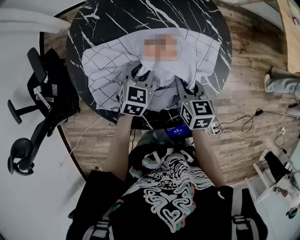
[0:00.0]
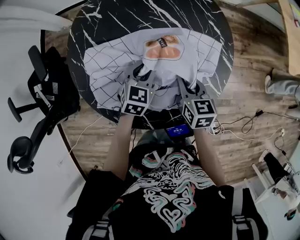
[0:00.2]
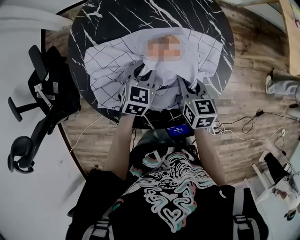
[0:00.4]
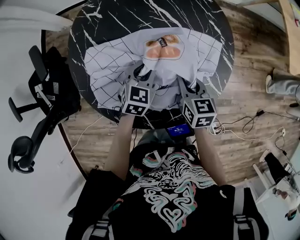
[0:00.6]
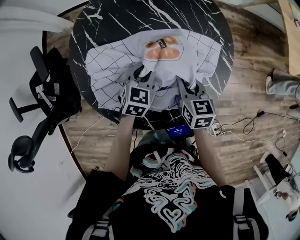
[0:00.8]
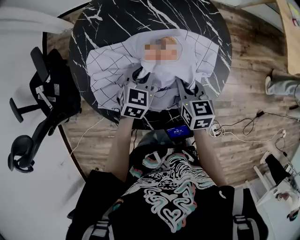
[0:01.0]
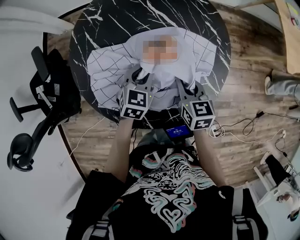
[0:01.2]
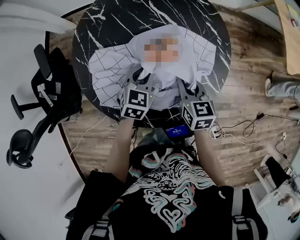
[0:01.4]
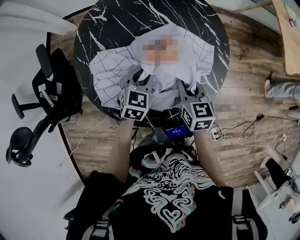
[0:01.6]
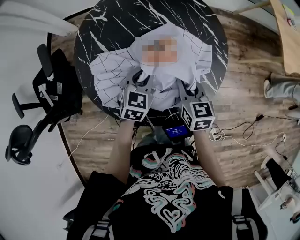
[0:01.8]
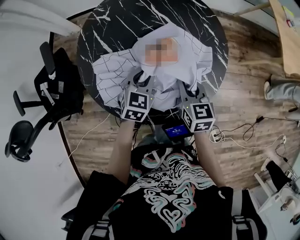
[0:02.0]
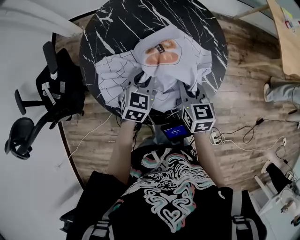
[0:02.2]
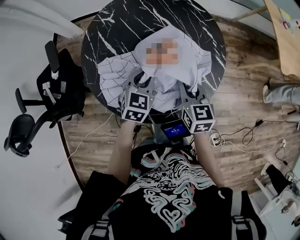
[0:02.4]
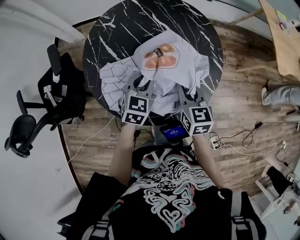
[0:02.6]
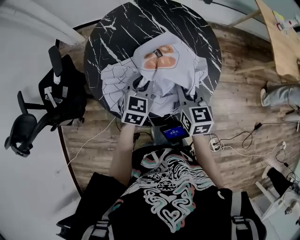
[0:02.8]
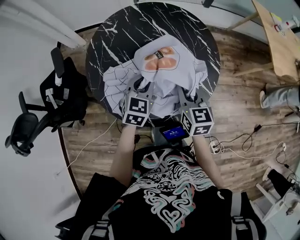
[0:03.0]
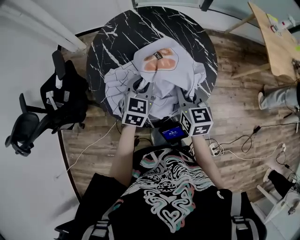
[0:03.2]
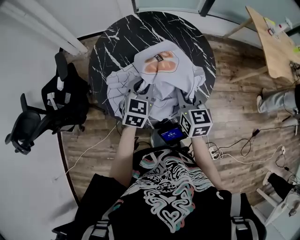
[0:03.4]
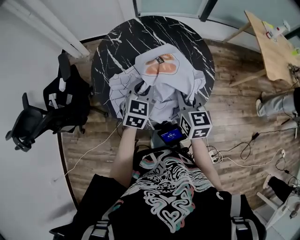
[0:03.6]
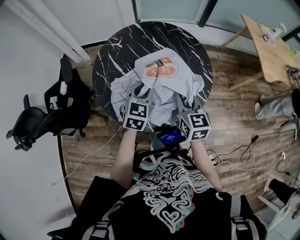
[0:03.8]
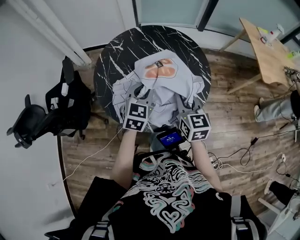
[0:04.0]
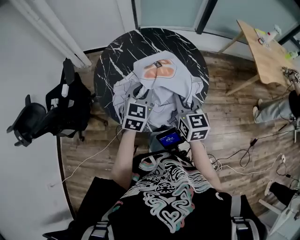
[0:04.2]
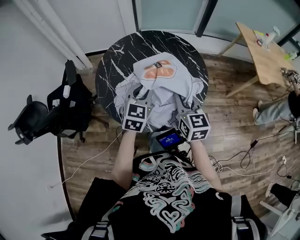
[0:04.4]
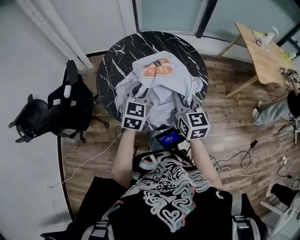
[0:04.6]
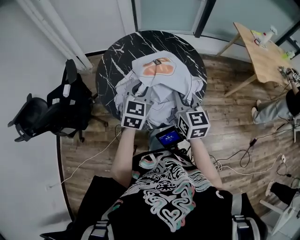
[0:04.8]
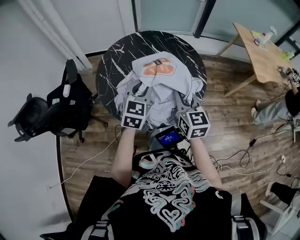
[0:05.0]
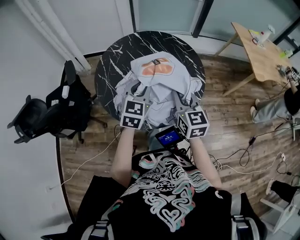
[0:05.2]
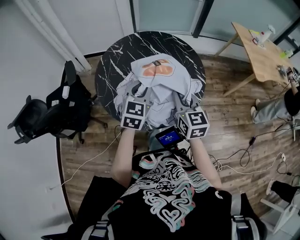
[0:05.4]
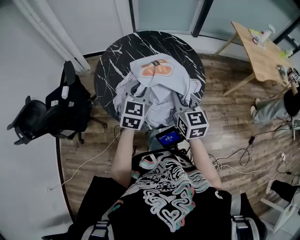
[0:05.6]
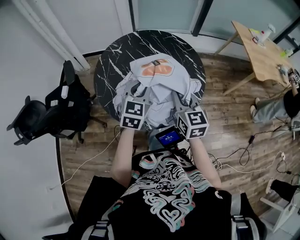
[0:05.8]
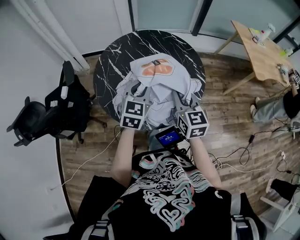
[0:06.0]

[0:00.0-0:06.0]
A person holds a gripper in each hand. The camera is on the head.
0:00.0 to 0:01.6: There are only small adjustments of the grippers.
0:01.6 to 0:03.0: Both grippers travel together upward, about 10 cm.
0:03.0 to 0:04.4: The grippers both shift upward and backward by some 10 cm.
0:04.4 to 0:06.0: The grippers stay close to where they were, moving slightly.

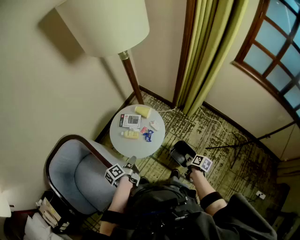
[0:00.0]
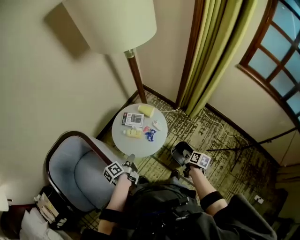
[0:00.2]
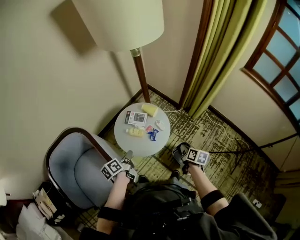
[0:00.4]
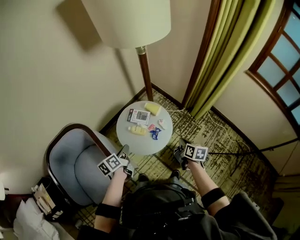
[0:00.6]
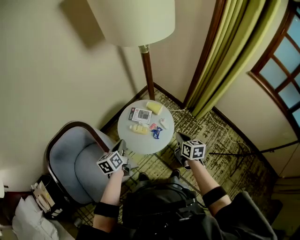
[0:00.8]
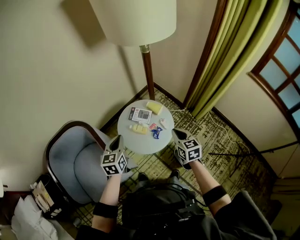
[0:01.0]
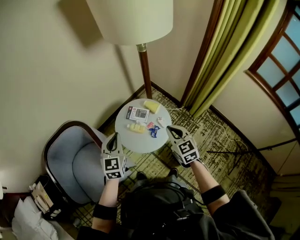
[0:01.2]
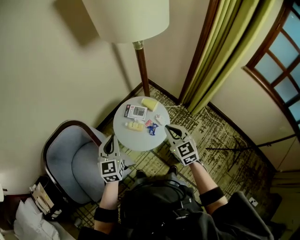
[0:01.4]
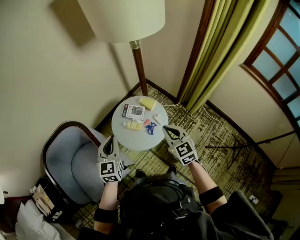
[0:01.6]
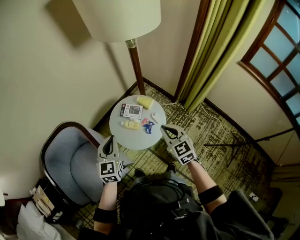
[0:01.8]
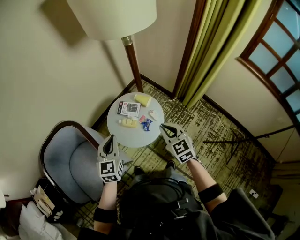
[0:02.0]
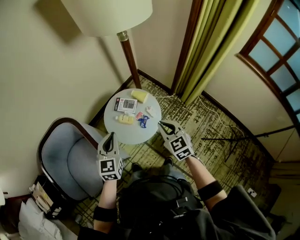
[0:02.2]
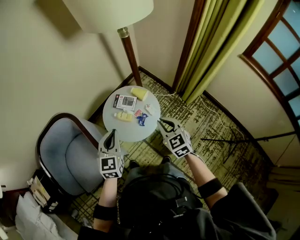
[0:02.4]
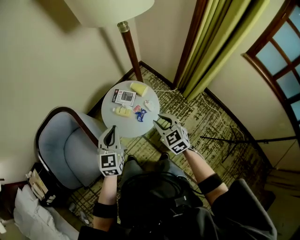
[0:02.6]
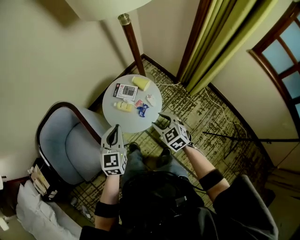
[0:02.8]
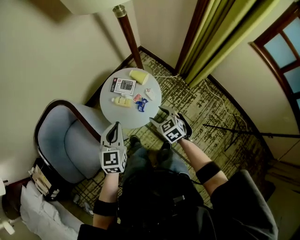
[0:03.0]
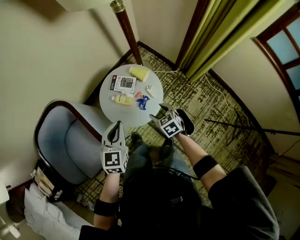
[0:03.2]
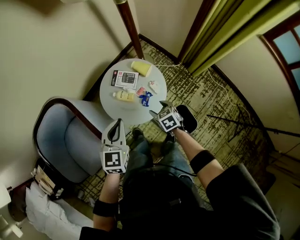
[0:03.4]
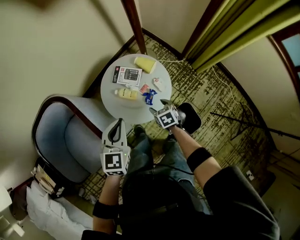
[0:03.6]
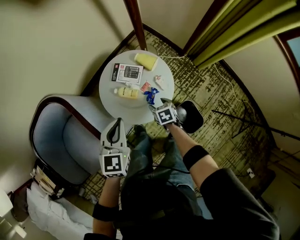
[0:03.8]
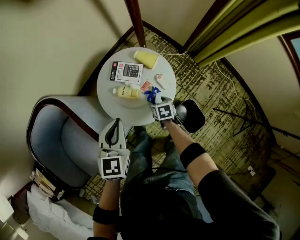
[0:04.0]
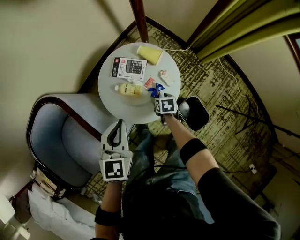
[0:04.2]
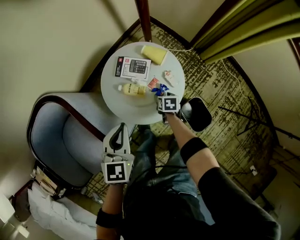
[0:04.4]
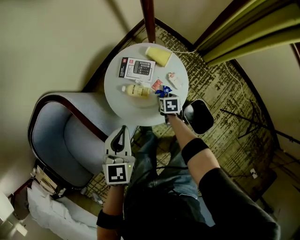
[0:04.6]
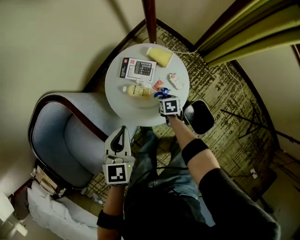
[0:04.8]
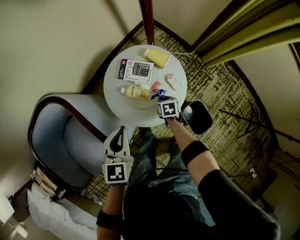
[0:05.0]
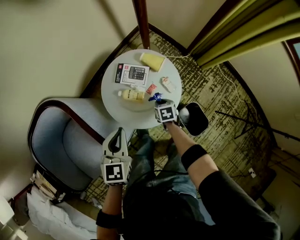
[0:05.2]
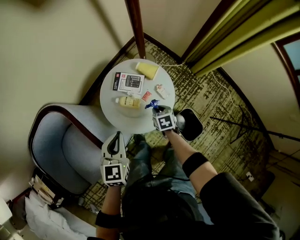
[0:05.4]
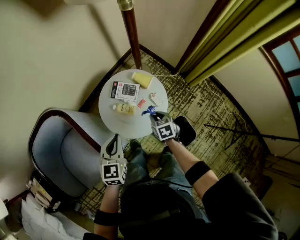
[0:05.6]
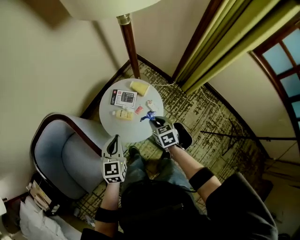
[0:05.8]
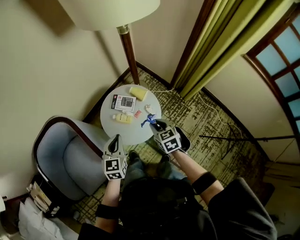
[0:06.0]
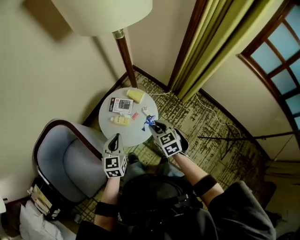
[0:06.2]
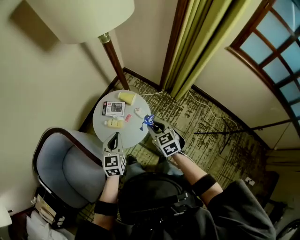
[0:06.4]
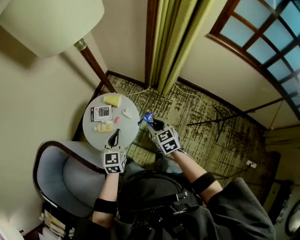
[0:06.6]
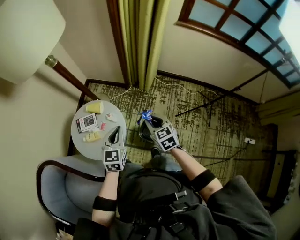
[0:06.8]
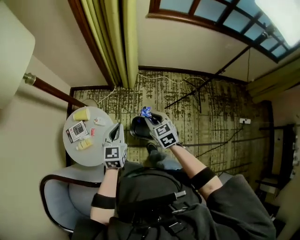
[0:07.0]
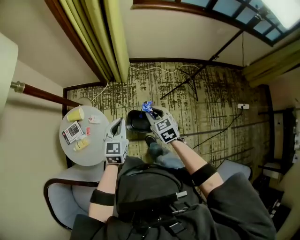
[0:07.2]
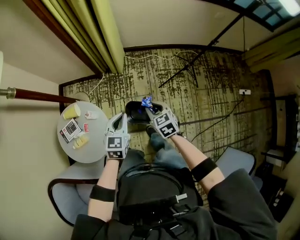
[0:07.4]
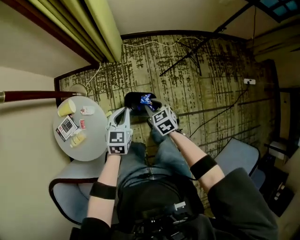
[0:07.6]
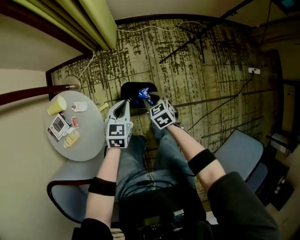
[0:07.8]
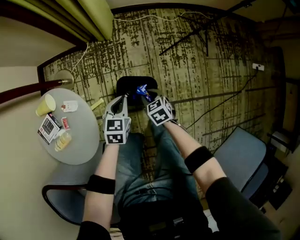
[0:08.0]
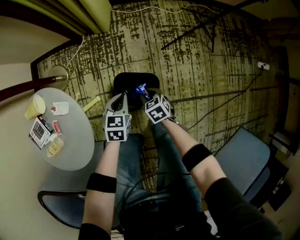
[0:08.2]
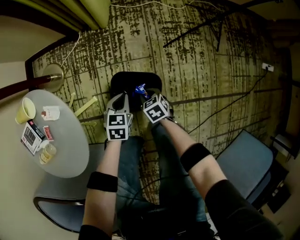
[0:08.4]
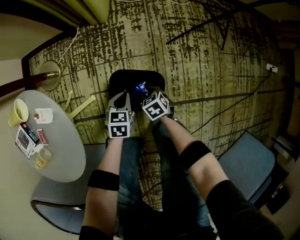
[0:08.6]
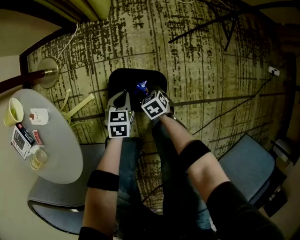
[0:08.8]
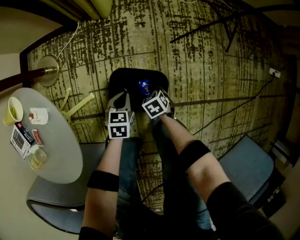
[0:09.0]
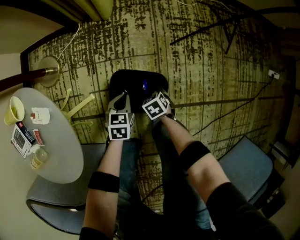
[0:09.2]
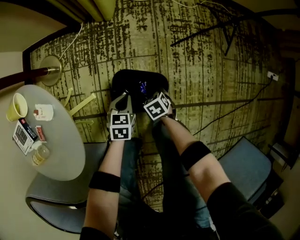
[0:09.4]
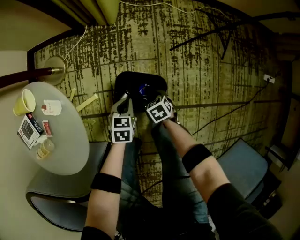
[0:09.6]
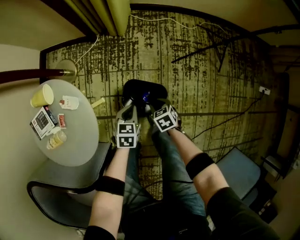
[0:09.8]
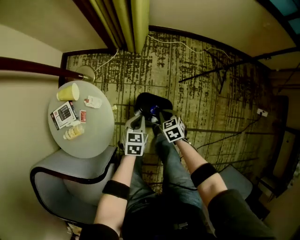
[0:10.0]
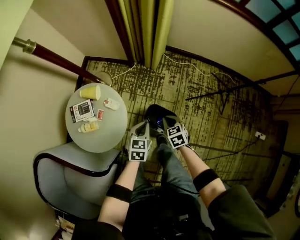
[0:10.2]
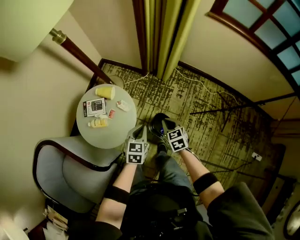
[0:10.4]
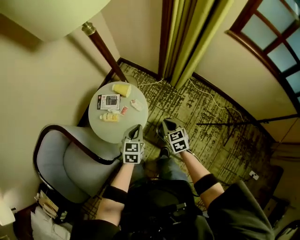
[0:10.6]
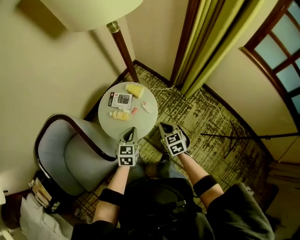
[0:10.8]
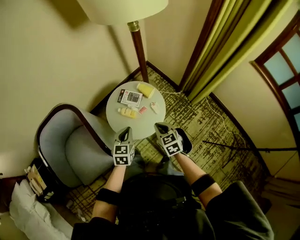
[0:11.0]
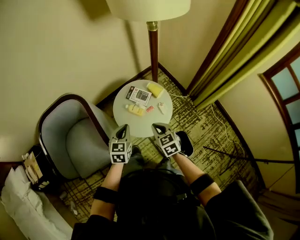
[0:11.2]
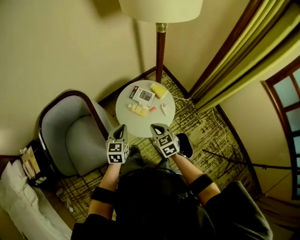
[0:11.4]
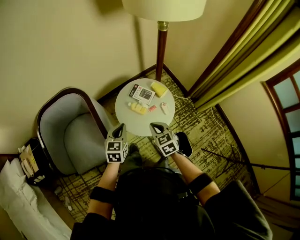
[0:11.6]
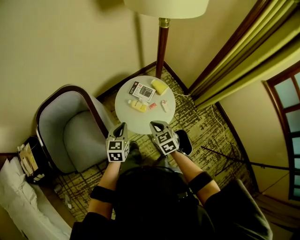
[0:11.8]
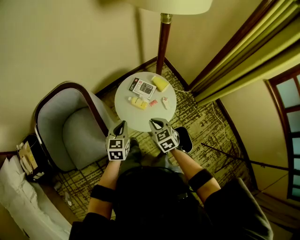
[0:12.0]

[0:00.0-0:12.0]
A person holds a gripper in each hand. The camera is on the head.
0:00.0 to 0:01.6: The right gripper is displaced upward, to the left and forward by roughly 35 cm, and twists some 80 degrees counterclockwise, seen from behind, while the left gripper shifts about 20 cm upward and to the left, and rotates around the line of its fingers by roughly 80 degrees, clockwise from behind.
0:01.6 to 0:03.0: The left gripper moves to the right and downward, about 15 cm. Meanwhile the right gripper shifts approximately 15 cm downward, swivels approximately 20 degrees, and opens its fingers.
0:03.0 to 0:04.4: The right gripper shifts roughly 30 cm downward, and rolls clockwise, seen from behind, by approximately 40 degrees. Meanwhile the left gripper shifts about 15 cm downward, forward and to the left.
0:04.4 to 0:06.0: The right gripper heads upward, covering approximately 35 cm, changes its angle by some 40 degrees, and closes; the left gripper shifts approximately 10 cm upward.
0:06.0 to 0:07.6: The right gripper shifts by roughly 35 cm, and turns by roughly 40 degrees. Meanwhile the left gripper shifts by approximately 40 cm, and turns by roughly 60 degrees.
0:07.6 to 0:09.0: The grippers both shift downward by roughly 50 cm. The right gripper changes its angle by approximately 20 degrees.
0:09.0 to 0:10.4: The grippers both shift upward by about 50 cm. The left gripper rotates some 30 degrees. The right gripper swivels approximately 30 degrees, and closes up.
0:10.4 to 0:12.0: The right gripper moves roughly 35 cm, and turns by approximately 40 degrees. The left gripper moves approximately 35 cm, and changes its angle by roughly 40 degrees.

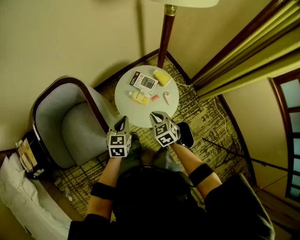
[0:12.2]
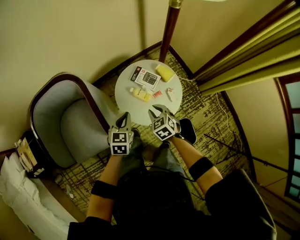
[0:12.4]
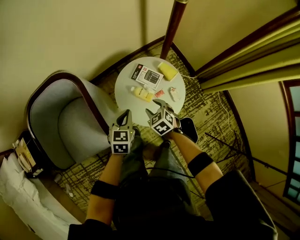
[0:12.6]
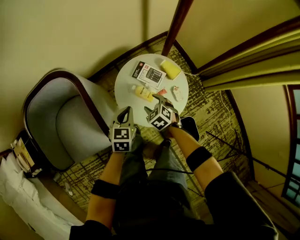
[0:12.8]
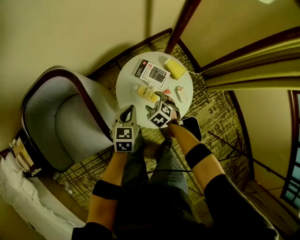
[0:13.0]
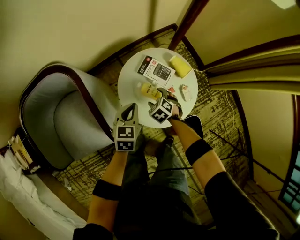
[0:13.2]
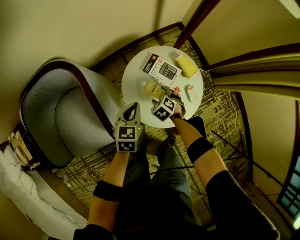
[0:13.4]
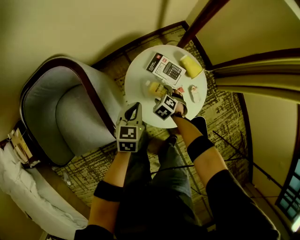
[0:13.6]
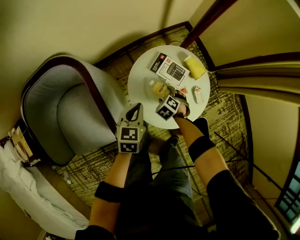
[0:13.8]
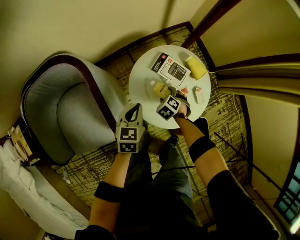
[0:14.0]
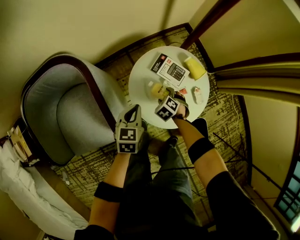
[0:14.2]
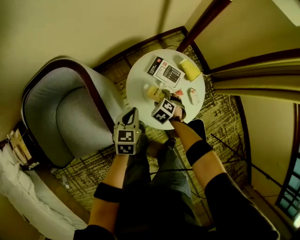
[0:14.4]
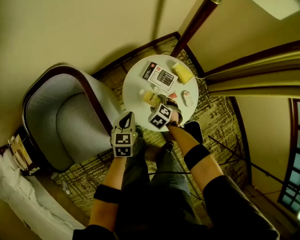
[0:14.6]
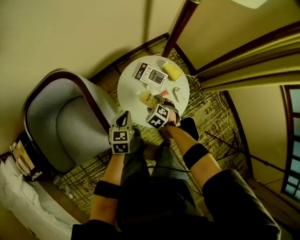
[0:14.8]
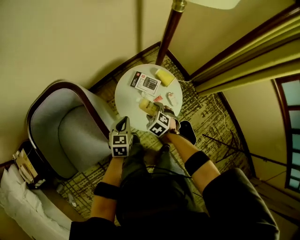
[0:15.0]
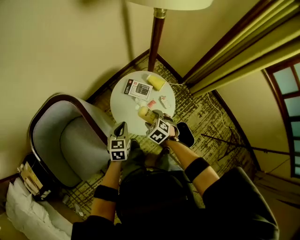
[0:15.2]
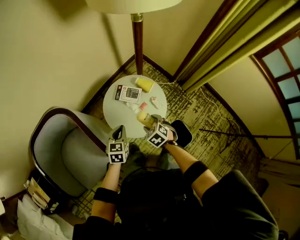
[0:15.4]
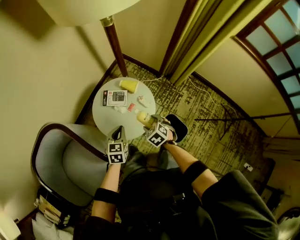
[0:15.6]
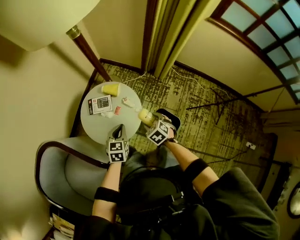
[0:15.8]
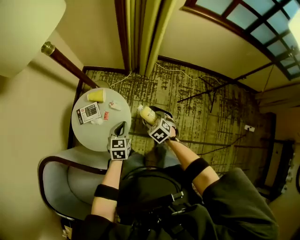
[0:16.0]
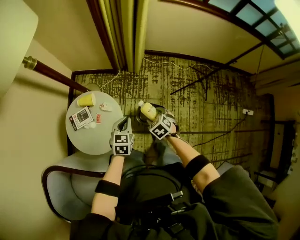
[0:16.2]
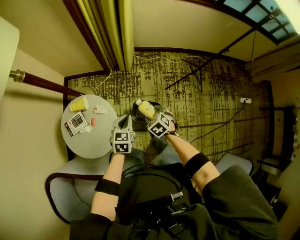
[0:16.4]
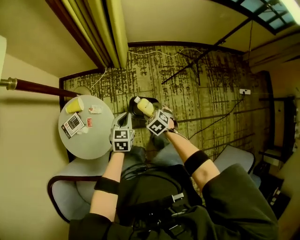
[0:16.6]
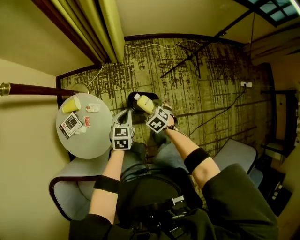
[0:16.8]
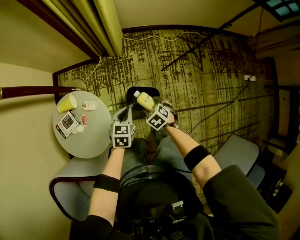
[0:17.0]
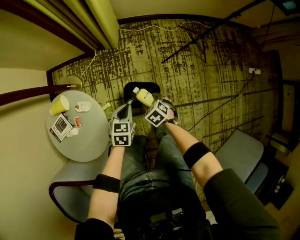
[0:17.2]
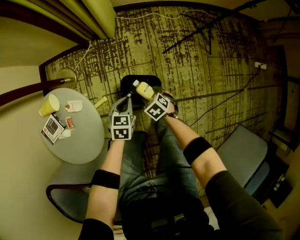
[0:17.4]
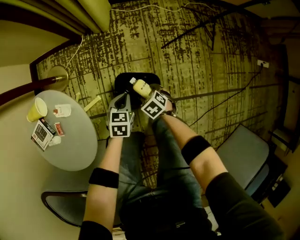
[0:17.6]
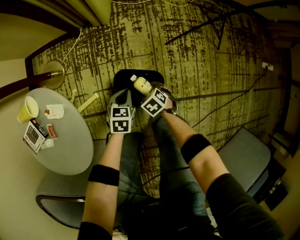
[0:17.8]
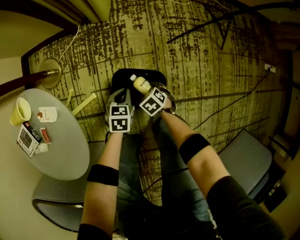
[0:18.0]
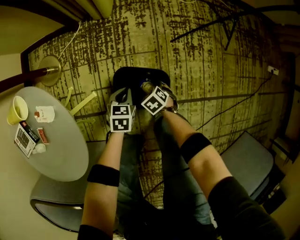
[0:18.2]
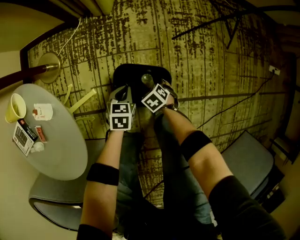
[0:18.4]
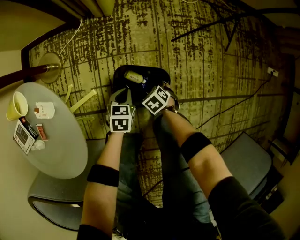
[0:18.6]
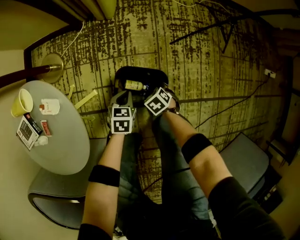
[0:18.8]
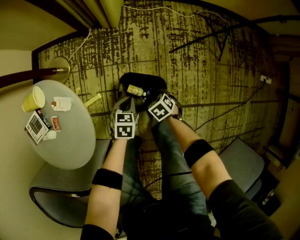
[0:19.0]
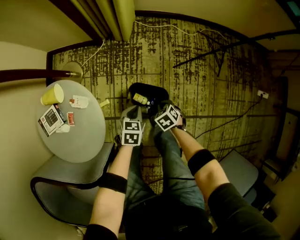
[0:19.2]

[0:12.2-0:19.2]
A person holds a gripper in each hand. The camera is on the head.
0:12.2 to 0:13.6: The left gripper travels downward and forward by about 15 cm. Meanwhile the right gripper goes approximately 30 cm downward and forward, swivels some 30 degrees, and opens up.
0:13.6 to 0:15.0: The left gripper goes roughly 10 cm upward, while the right gripper goes approximately 20 cm upward.
0:15.0 to 0:16.4: Both grippers are carried approximately 40 cm. The left gripper changes its angle by some 60 degrees. The right gripper twists approximately 60 degrees clockwise, seen from behind.
0:16.4 to 0:17.8: Both grippers move downward, some 40 cm.
0:17.8 to 0:19.2: Both grippers travel together upward, about 10 cm. The right gripper closes.
